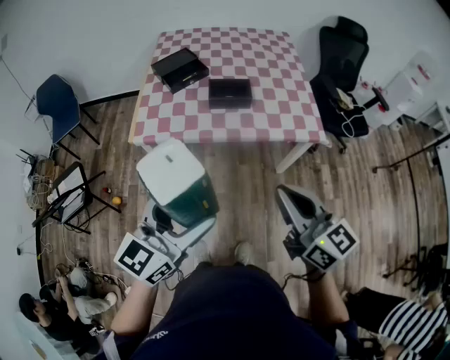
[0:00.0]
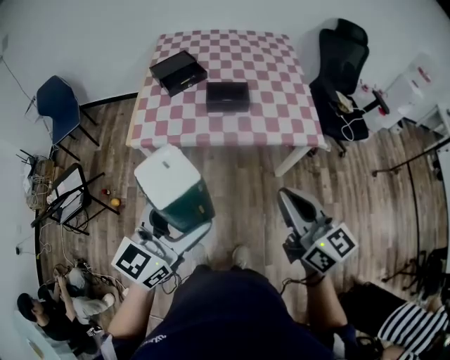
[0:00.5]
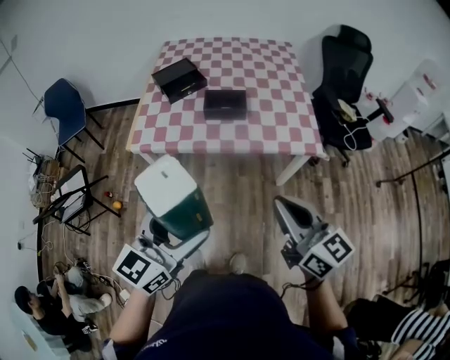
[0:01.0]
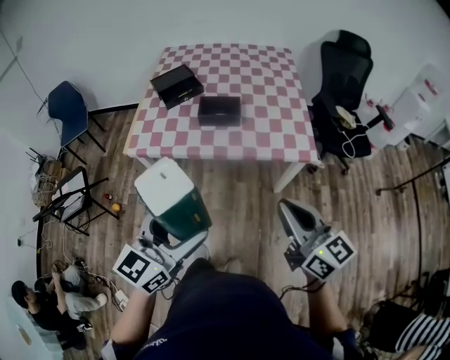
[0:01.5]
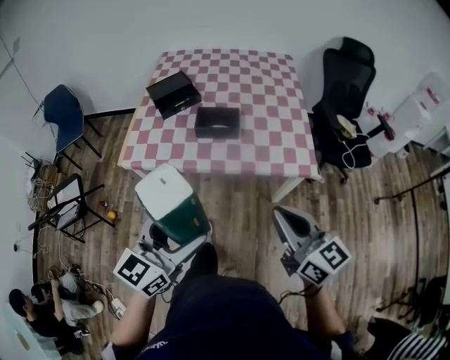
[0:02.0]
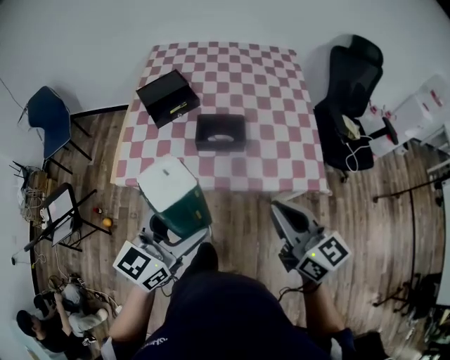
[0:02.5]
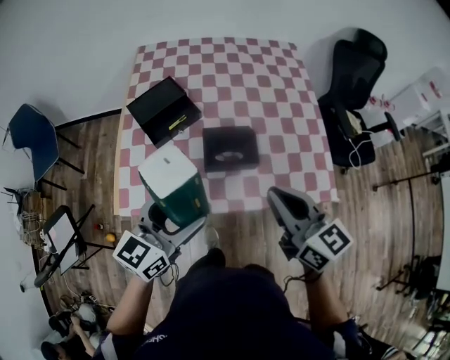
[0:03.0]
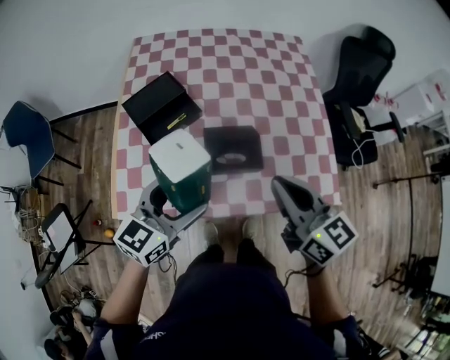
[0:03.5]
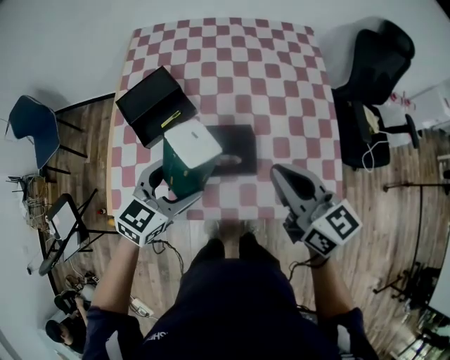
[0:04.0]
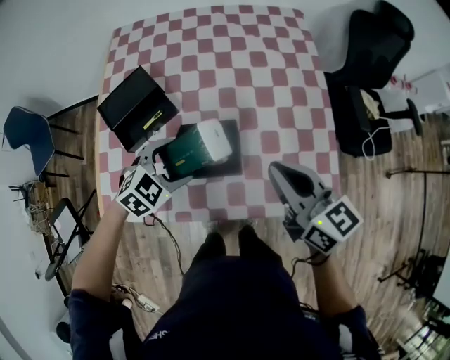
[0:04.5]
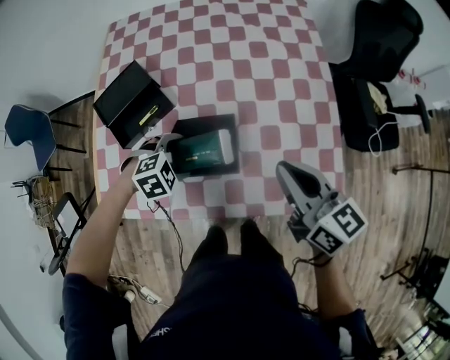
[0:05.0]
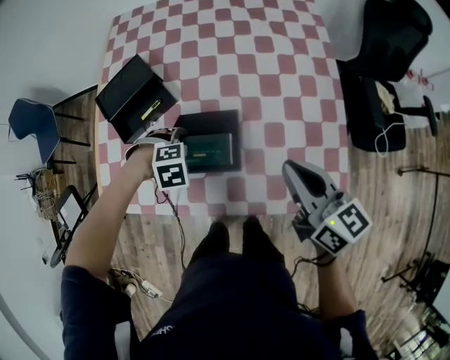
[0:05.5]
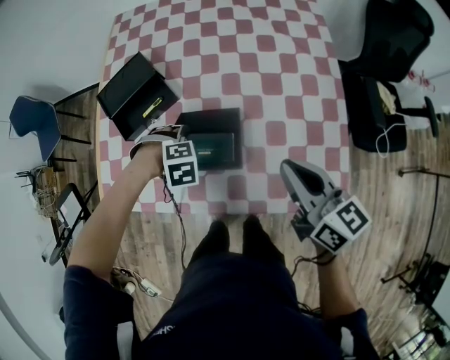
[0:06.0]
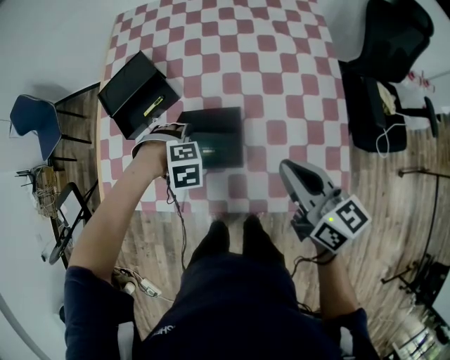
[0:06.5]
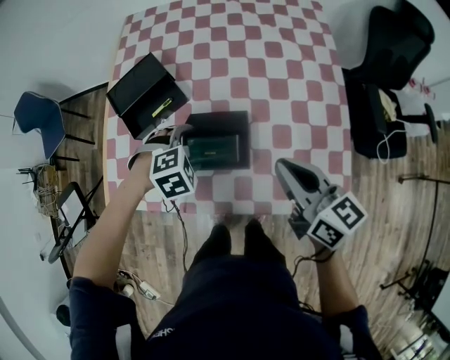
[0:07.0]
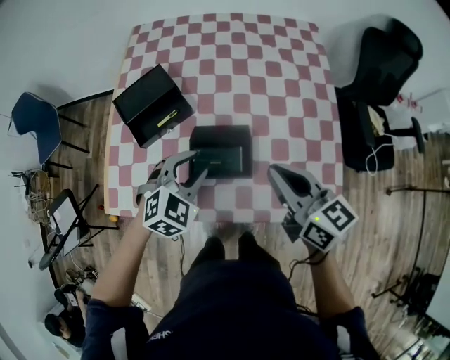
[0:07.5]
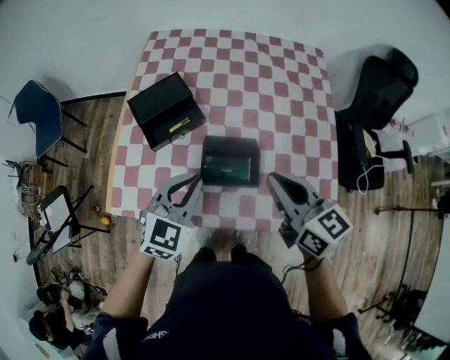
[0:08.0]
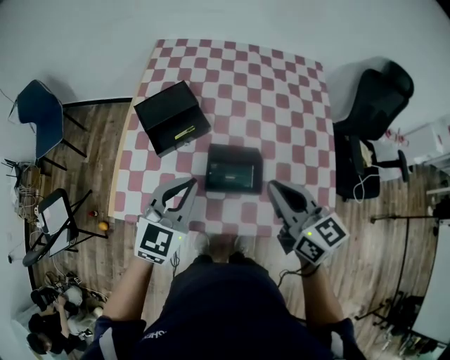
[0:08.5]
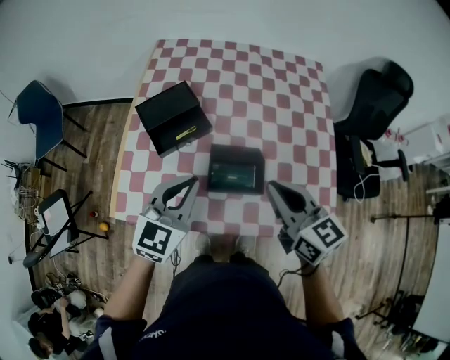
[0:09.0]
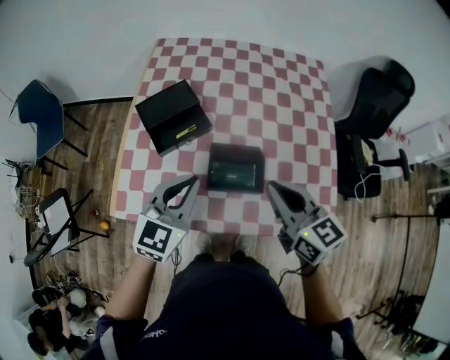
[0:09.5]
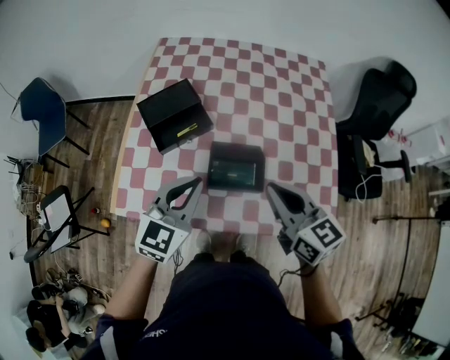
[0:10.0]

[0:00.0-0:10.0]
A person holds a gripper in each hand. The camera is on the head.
0:00.0 to 0:02.0: The two grippers go roughly 10 cm to the right and forward.
0:02.0 to 0:04.0: The two grippers travel together, forward, about 40 cm. The left gripper turns by some 30 degrees.
0:04.0 to 0:06.0: The left gripper moves downward, approximately 20 cm, and points its fingers roughly 60 degrees further downward; the right gripper shifts by some 10 cm.
0:06.0 to 0:08.0: The right gripper ends up approximately 15 cm from where it was; the left gripper moves upward, approximately 20 cm, angles its fingers upward, by some 60 degrees, and closes.
0:08.0 to 0:10.0: The grippers make only small movements.

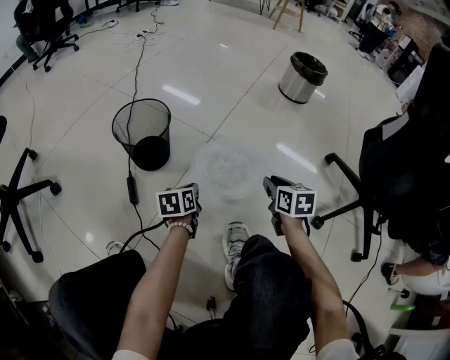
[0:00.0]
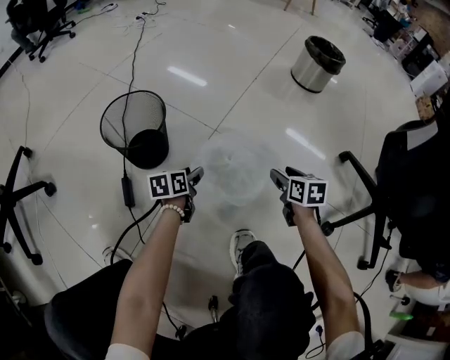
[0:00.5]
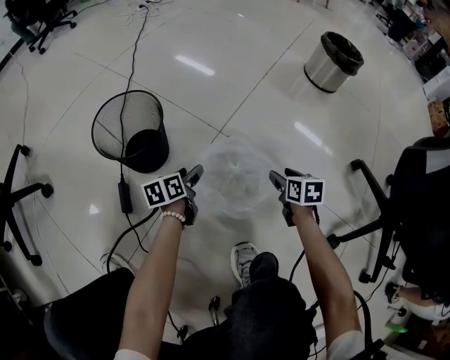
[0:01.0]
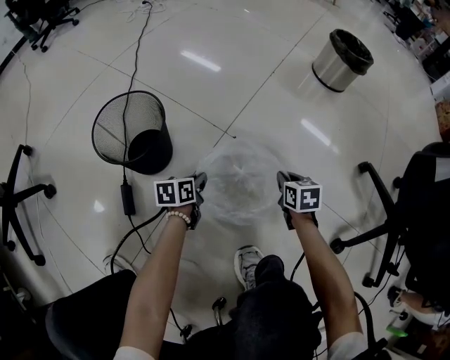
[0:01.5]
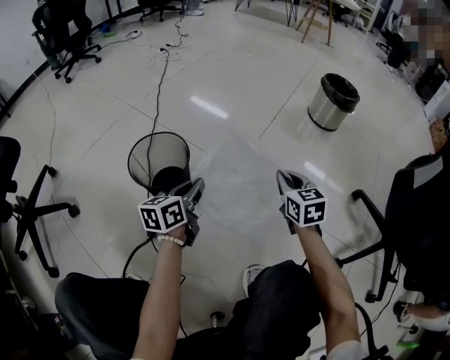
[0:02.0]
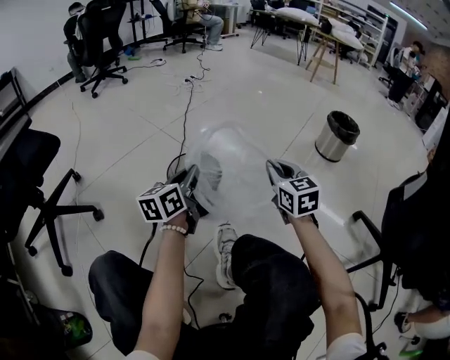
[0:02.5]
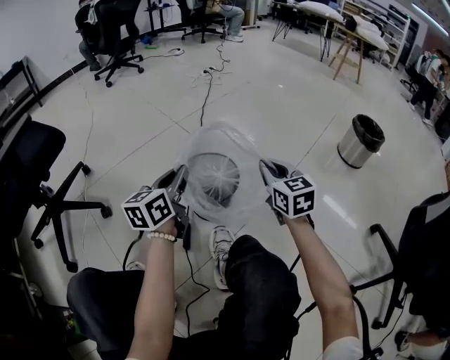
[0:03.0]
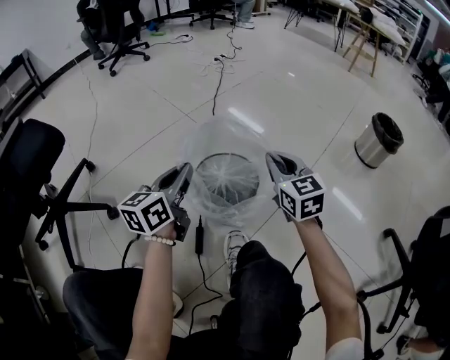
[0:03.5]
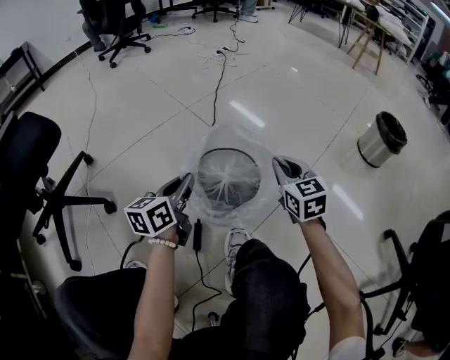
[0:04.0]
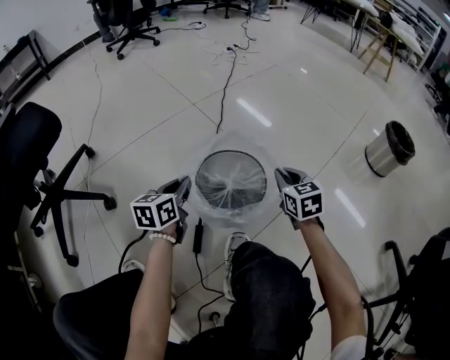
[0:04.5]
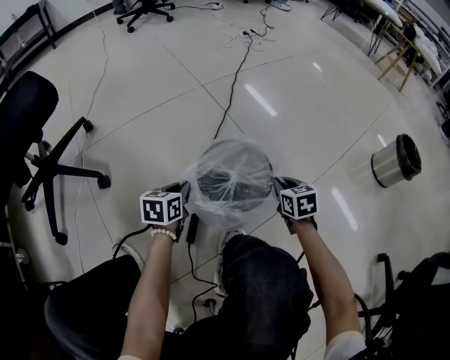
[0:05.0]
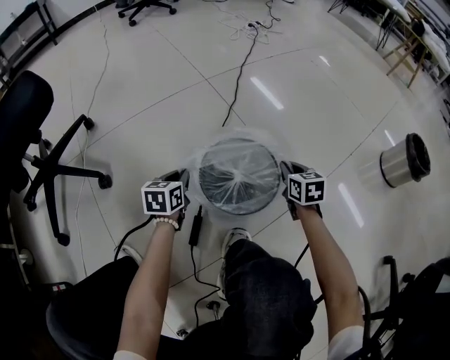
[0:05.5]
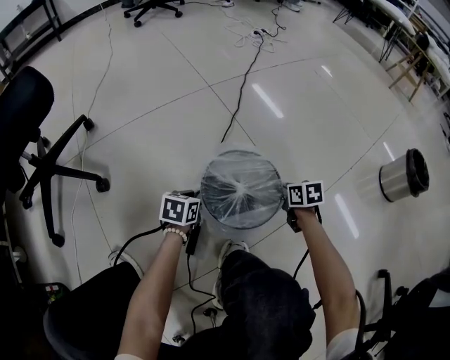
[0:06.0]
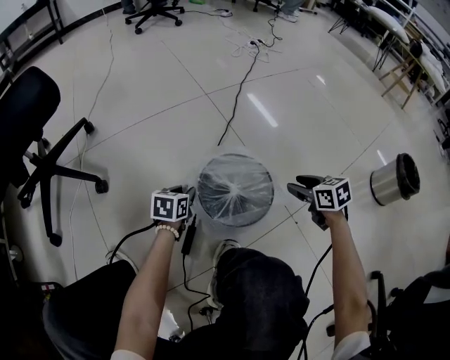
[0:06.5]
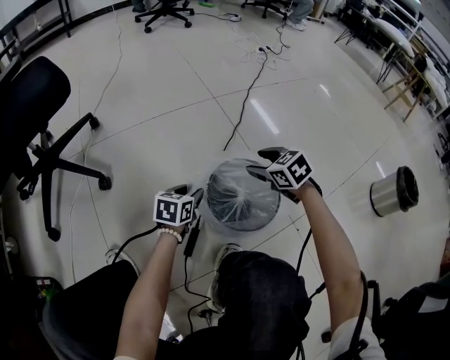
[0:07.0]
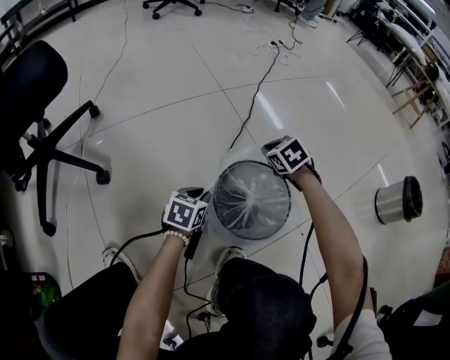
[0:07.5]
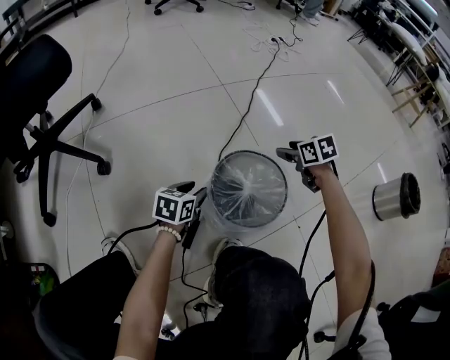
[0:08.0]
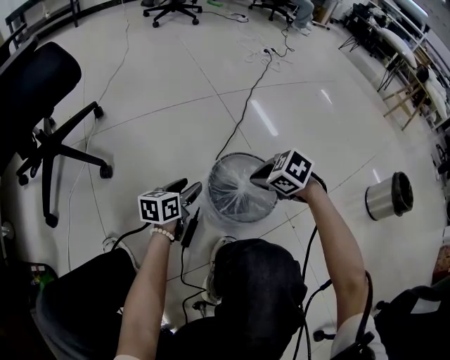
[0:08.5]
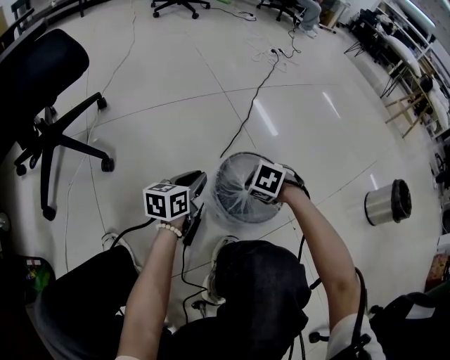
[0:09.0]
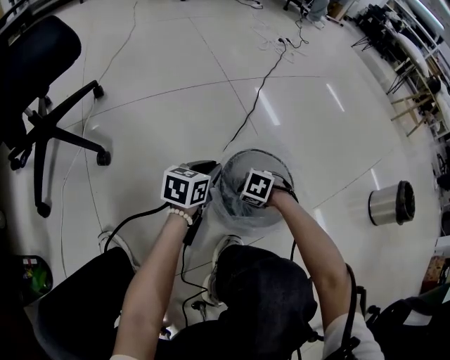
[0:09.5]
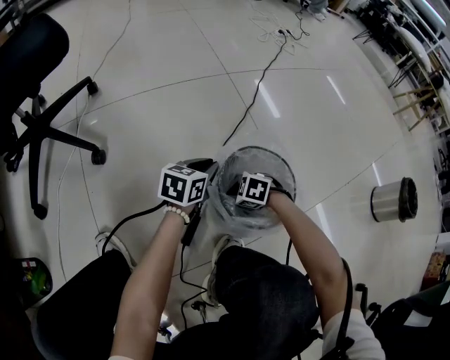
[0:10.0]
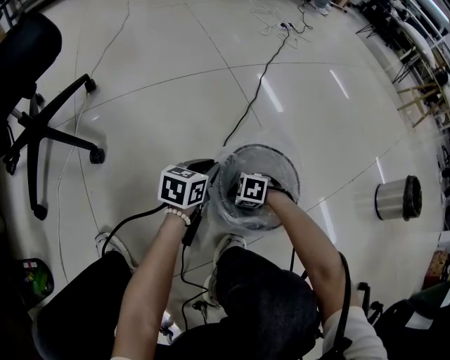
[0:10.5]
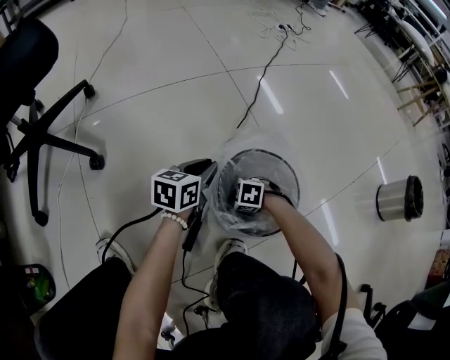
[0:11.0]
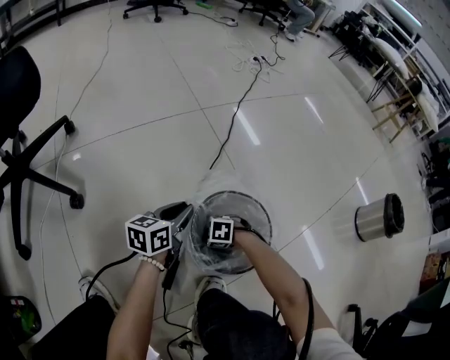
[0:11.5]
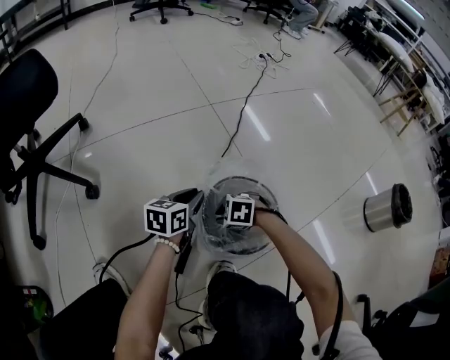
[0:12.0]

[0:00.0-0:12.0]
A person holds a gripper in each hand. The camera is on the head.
0:00.0 to 0:02.0: The right gripper goes some 15 cm forward, moves roughly 15 cm downward and comes back, swivels some 20 degrees, and opens and closes again, while the left gripper heads upward and forward, covering some 20 cm, changes its angle by roughly 20 degrees, and opens, then closes once more.
0:02.0 to 0:04.0: The left gripper travels to the left by approximately 25 cm, while the right gripper travels to the left and forward by some 25 cm, and changes its angle by about 20 degrees.
0:04.0 to 0:06.0: Both grippers travel together downward, approximately 25 cm. The left gripper tilts its fingers roughly 40 degrees downward; the right gripper tips its fingers downward by roughly 30 degrees.
0:06.0 to 0:08.0: The left gripper opens; the right gripper goes roughly 15 cm forward and upward, travels to the left and back again, about 15 cm each way, rotates approximately 20 degrees, and opens its fingers.
0:08.0 to 0:10.0: The right gripper changes place by about 30 cm, rolls counterclockwise, seen from behind, by approximately 50 degrees, and closes up, while the left gripper ends up some 5 cm from where it was, and closes up.
0:10.0 to 0:12.0: The right gripper travels downward and back again, about 5 cm each way.

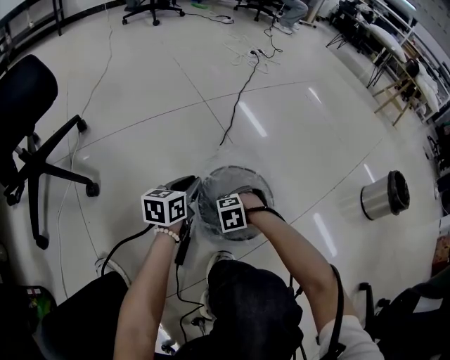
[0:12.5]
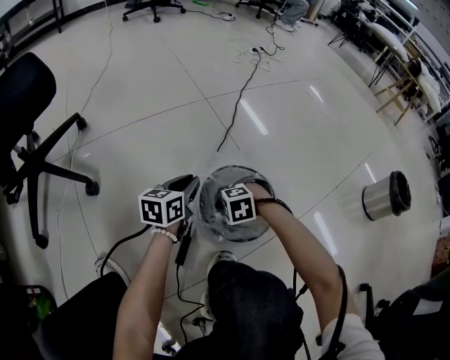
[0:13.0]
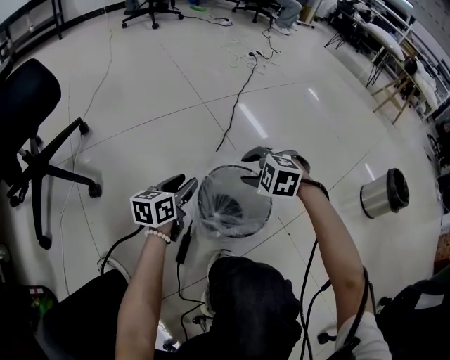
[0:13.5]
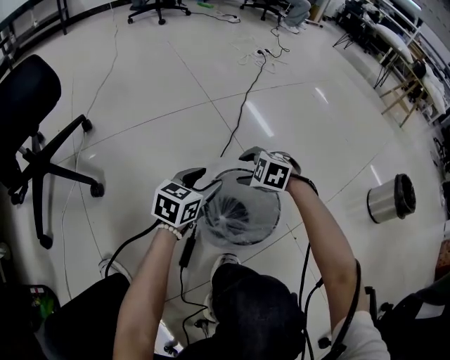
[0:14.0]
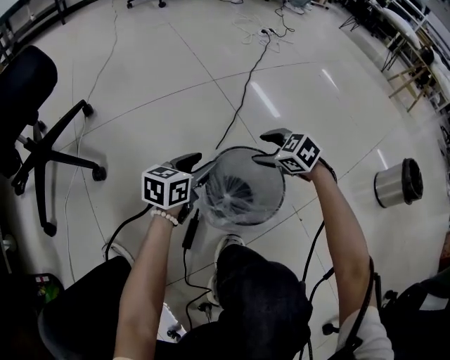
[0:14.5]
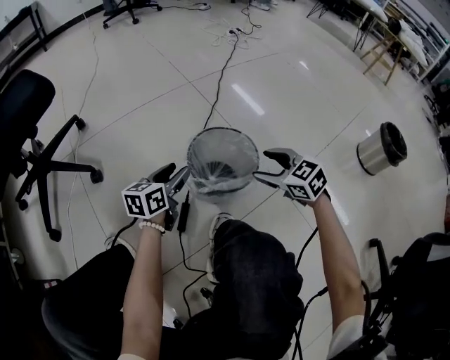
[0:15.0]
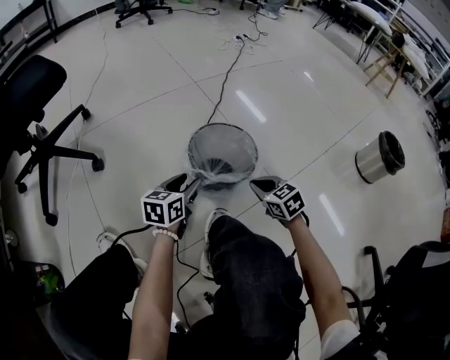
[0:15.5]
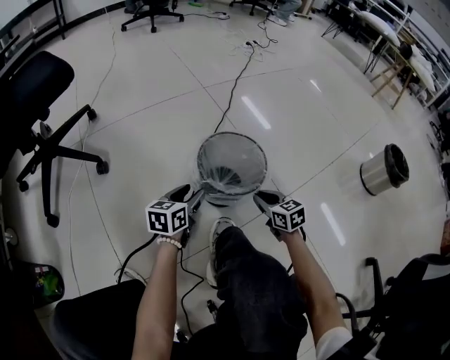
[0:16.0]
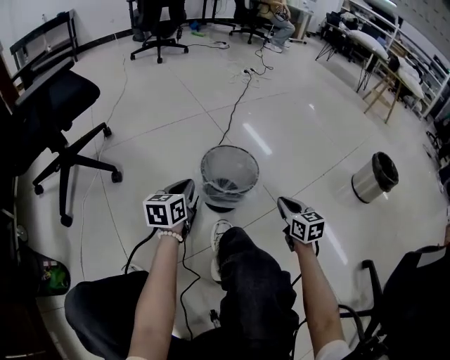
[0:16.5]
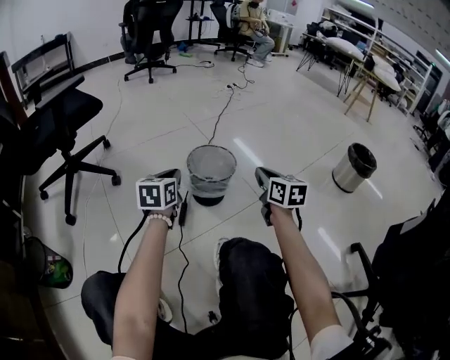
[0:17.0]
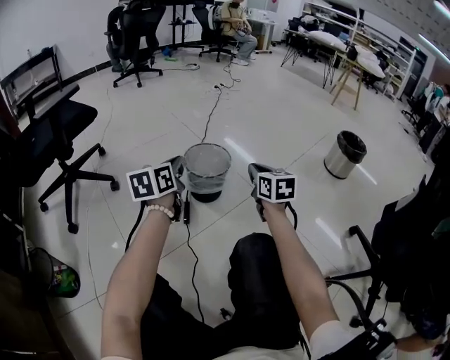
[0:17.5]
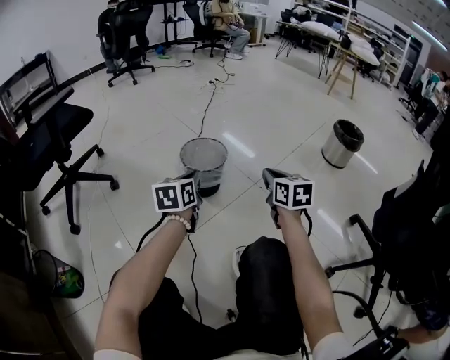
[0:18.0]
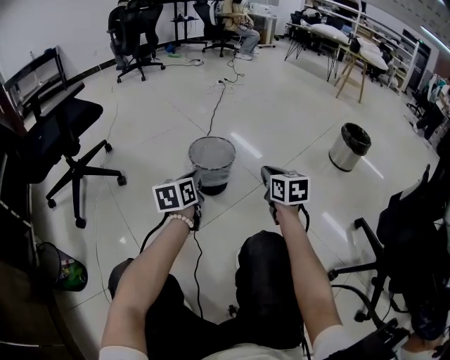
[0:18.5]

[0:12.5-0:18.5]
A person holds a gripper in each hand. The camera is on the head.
0:12.5 to 0:14.5: The right gripper ends up roughly 20 cm from where it was, angles its fingers upward, by roughly 30 degrees, and opens up, while the left gripper opens up.
0:14.5 to 0:16.5: The left gripper moves backward and upward, about 20 cm, and closes; the right gripper moves backward and to the right, roughly 30 cm, turns by some 50 degrees, and closes.
0:16.5 to 0:18.5: The left gripper shifts roughly 20 cm backward, upward and to the right. Meanwhile the right gripper travels upward and backward by about 20 cm.
